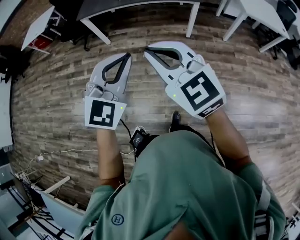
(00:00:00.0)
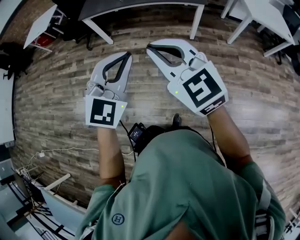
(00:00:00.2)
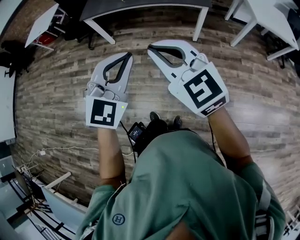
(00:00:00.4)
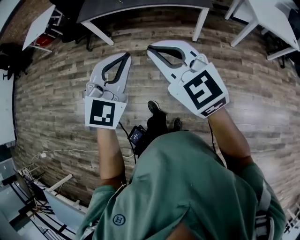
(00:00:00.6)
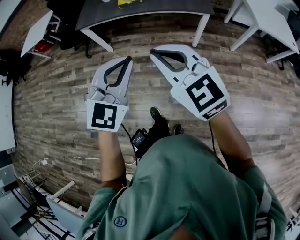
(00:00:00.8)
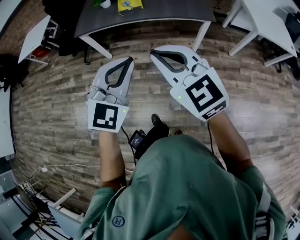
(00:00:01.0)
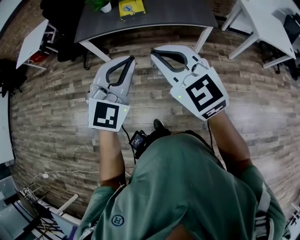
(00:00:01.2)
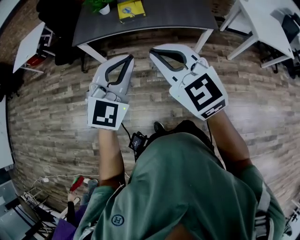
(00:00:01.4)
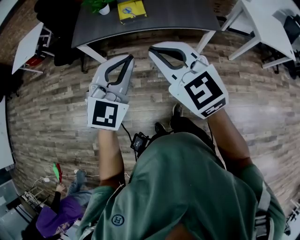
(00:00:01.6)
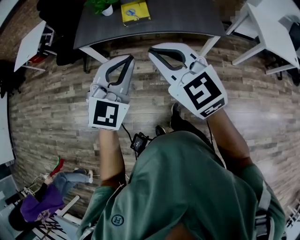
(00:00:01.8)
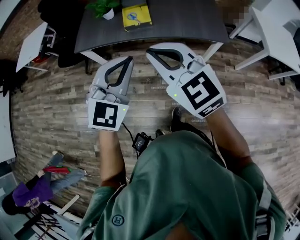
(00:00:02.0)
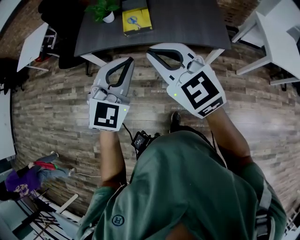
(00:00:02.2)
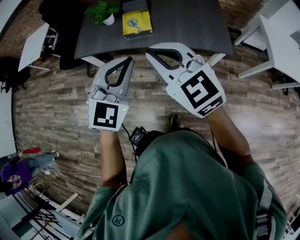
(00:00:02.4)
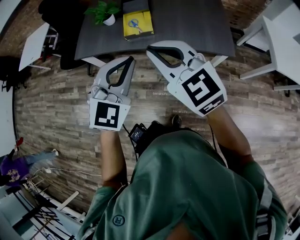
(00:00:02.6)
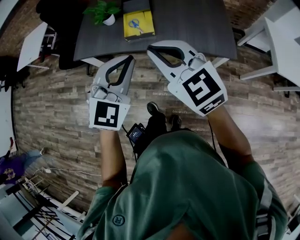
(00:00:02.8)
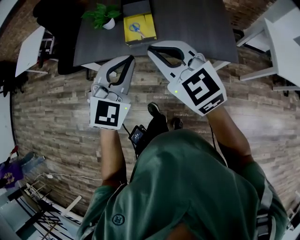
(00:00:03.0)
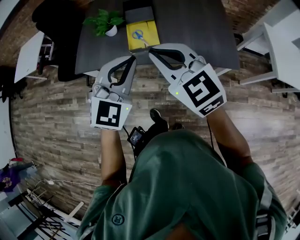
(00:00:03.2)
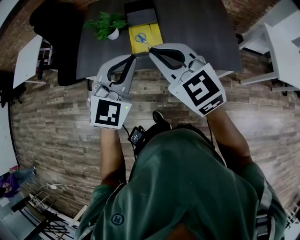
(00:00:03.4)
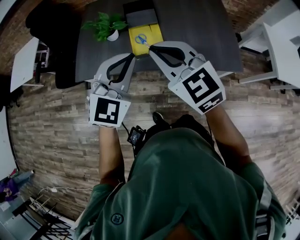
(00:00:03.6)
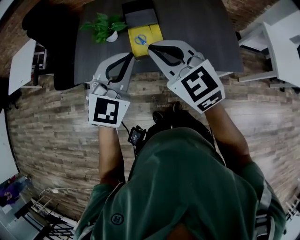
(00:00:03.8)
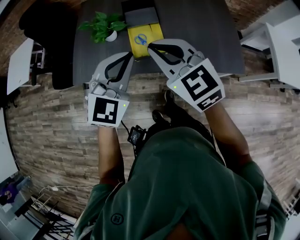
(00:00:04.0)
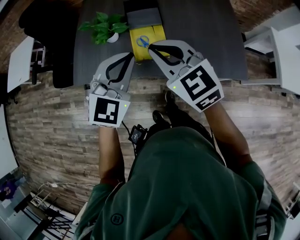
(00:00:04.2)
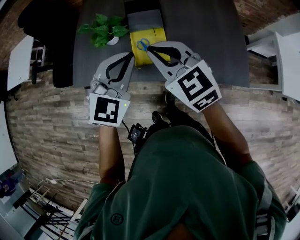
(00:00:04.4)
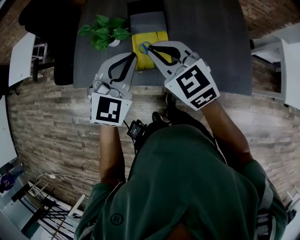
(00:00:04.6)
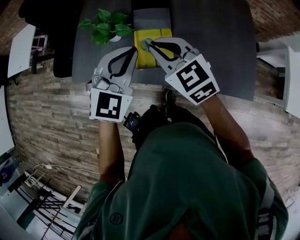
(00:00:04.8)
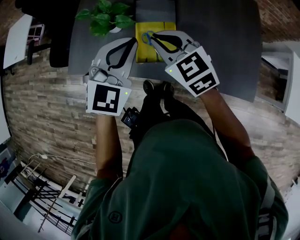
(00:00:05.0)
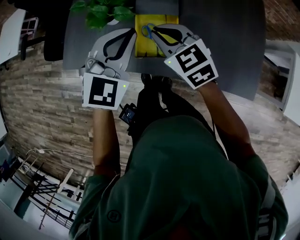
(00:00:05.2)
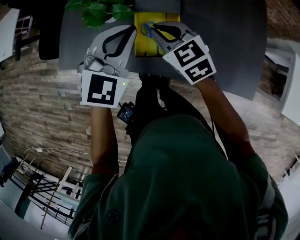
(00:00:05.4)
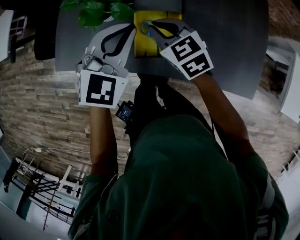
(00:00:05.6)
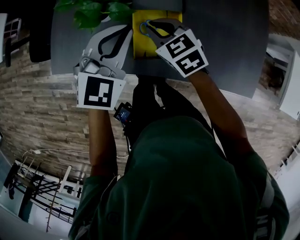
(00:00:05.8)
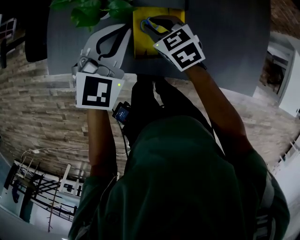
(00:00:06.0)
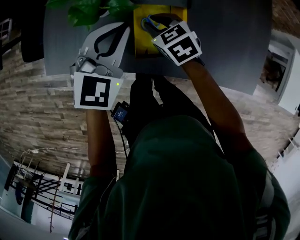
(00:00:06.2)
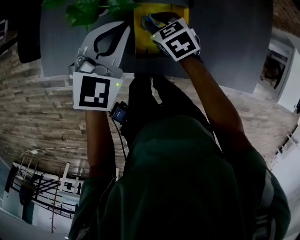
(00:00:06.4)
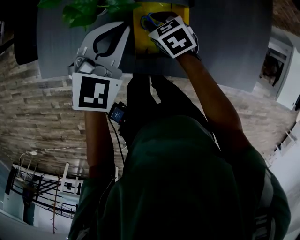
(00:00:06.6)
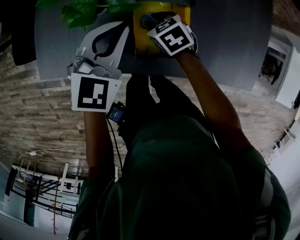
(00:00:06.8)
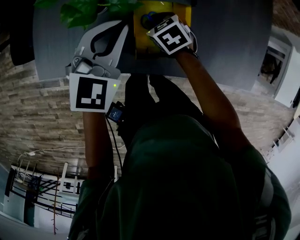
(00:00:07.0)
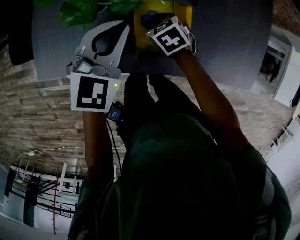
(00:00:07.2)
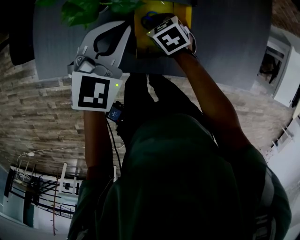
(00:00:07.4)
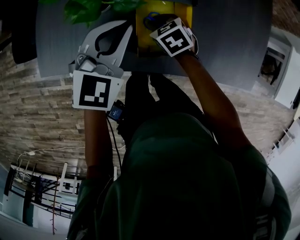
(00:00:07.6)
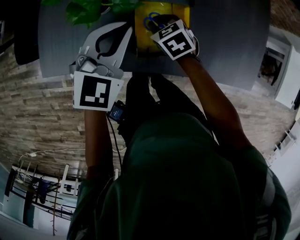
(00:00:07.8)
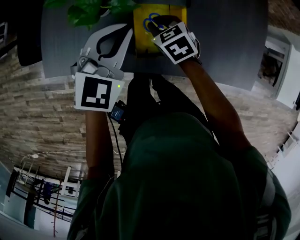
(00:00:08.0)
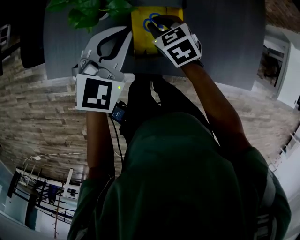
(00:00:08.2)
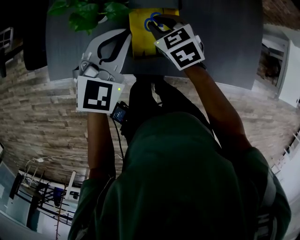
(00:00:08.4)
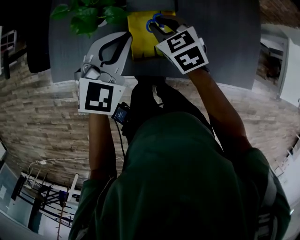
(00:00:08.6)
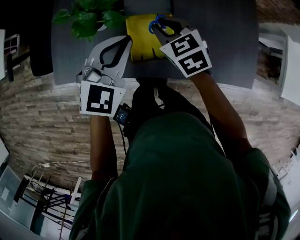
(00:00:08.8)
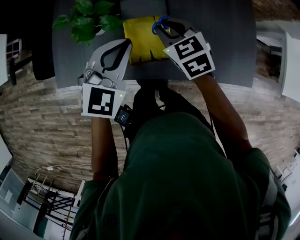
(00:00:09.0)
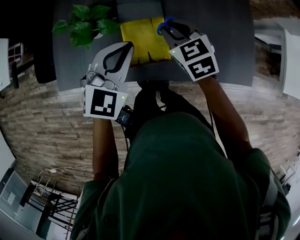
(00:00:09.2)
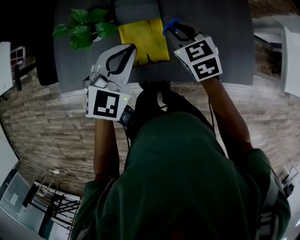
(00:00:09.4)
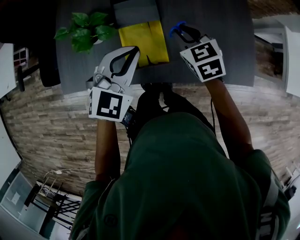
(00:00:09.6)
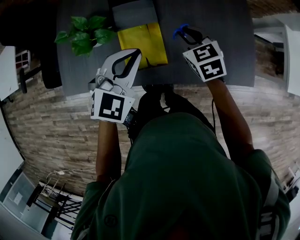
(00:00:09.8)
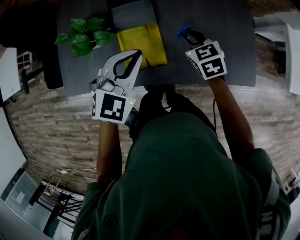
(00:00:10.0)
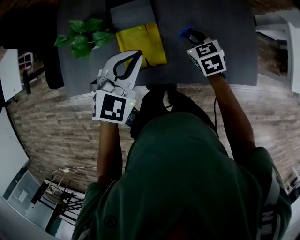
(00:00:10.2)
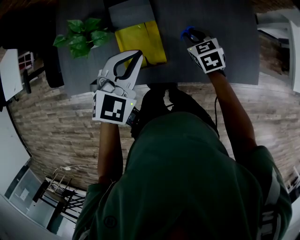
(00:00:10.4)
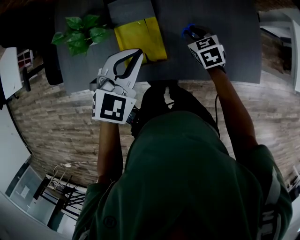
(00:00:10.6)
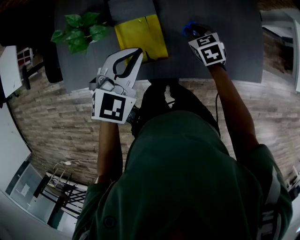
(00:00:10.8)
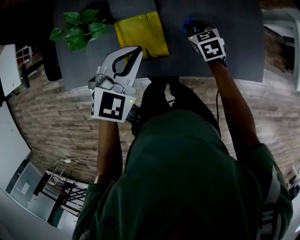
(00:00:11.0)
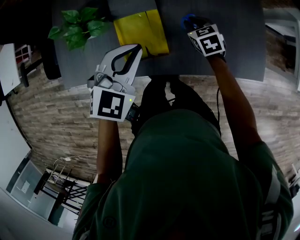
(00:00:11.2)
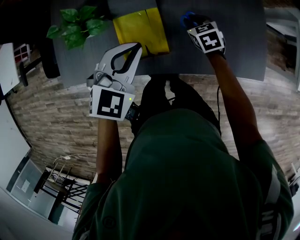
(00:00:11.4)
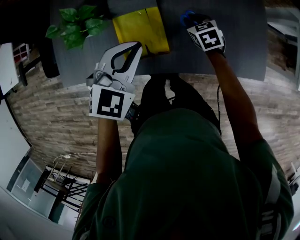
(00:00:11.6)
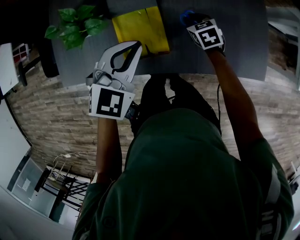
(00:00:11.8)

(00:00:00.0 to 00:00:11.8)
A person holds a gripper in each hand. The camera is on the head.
00:00:00.0 - 00:00:01.4: The two grippers go roughly 35 cm forward.
00:00:01.4 - 00:00:03.0: Both grippers travel together forward, roughly 30 cm.
00:00:03.0 - 00:00:04.4: The grippers both shift forward by about 20 cm.
00:00:04.4 - 00:00:06.0: The left gripper moves forward and downward, about 20 cm; the right gripper travels downward and forward by some 30 cm, and swivels about 30 degrees.
00:00:06.0 - 00:00:07.4: The left gripper changes place by approximately 5 cm. Meanwhile the right gripper heads downward, covering about 10 cm.
00:00:07.4 - 00:00:08.8: The right gripper goes some 20 cm upward, and changes its angle by about 20 degrees. The left gripper shifts approximately 10 cm upward and to the right.
00:00:08.8 - 00:00:10.4: The left gripper moves to the right, roughly 10 cm, while the right gripper goes about 20 cm to the right.
00:00:10.4 - 00:00:11.8: The right gripper is displaced downward by approximately 10 cm.

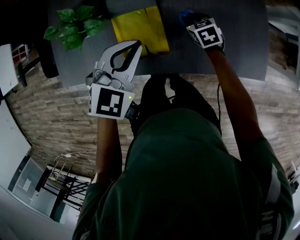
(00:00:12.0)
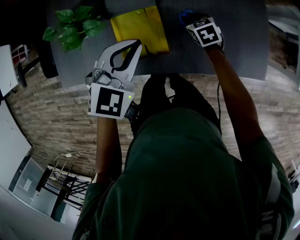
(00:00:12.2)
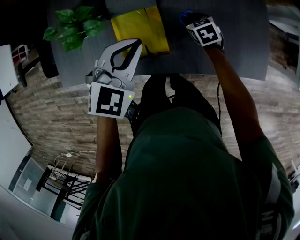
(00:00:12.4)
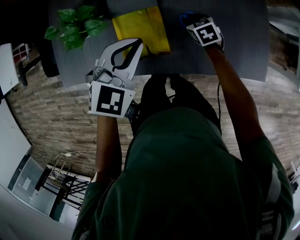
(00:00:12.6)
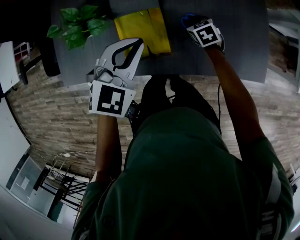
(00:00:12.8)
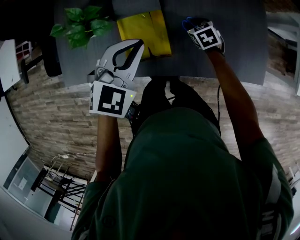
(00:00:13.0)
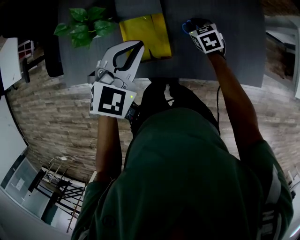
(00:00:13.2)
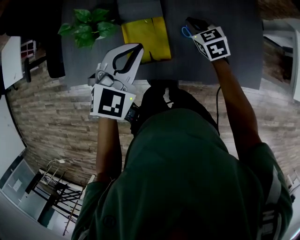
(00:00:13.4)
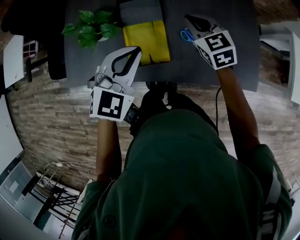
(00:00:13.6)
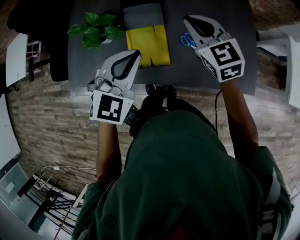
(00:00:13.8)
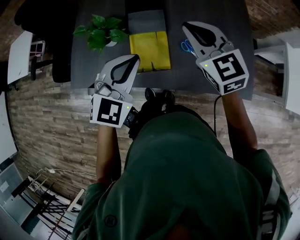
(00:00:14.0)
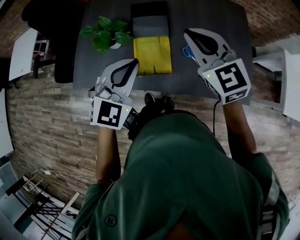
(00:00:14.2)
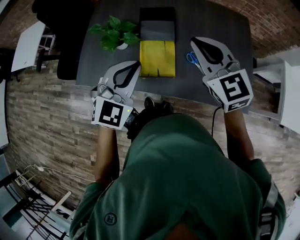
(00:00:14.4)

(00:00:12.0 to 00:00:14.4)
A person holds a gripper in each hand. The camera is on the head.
00:00:12.0 - 00:00:13.2: The grippers make only small movements.
00:00:13.2 - 00:00:14.4: The left gripper moves backward and upward, approximately 10 cm; the right gripper is displaced upward by some 35 cm, and tilts its fingers roughly 40 degrees upward.

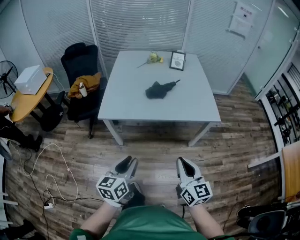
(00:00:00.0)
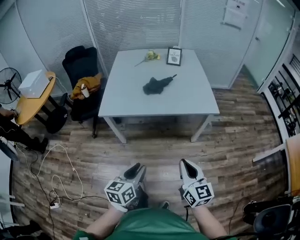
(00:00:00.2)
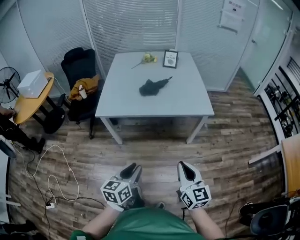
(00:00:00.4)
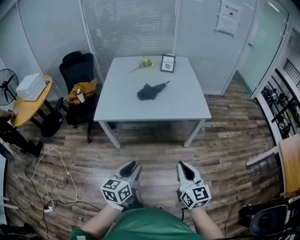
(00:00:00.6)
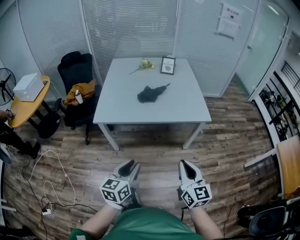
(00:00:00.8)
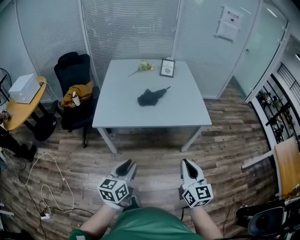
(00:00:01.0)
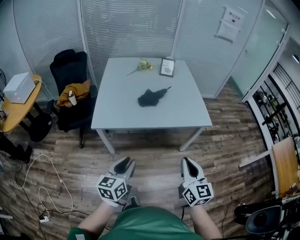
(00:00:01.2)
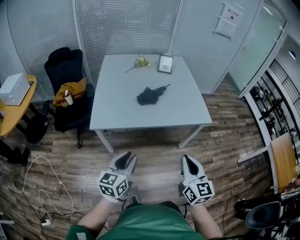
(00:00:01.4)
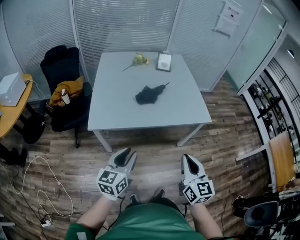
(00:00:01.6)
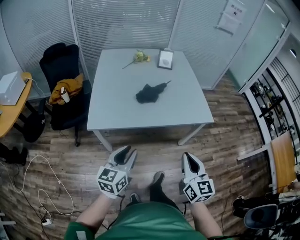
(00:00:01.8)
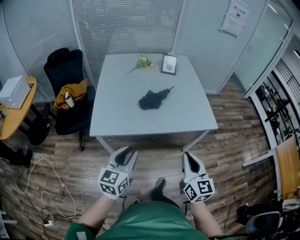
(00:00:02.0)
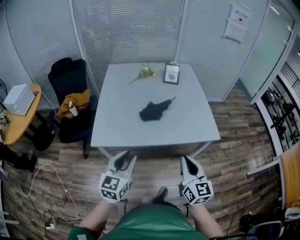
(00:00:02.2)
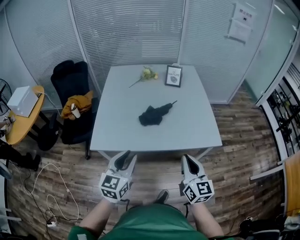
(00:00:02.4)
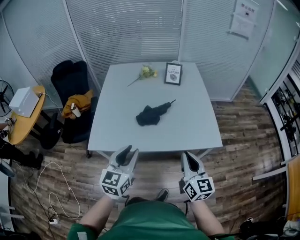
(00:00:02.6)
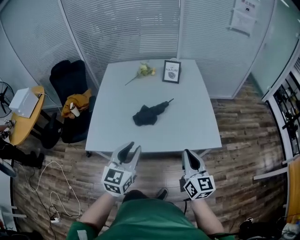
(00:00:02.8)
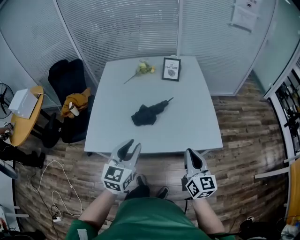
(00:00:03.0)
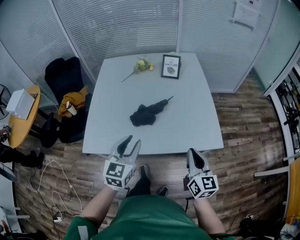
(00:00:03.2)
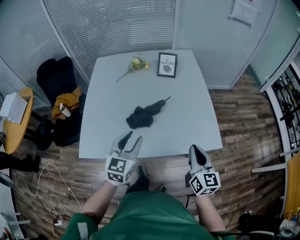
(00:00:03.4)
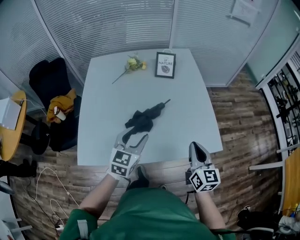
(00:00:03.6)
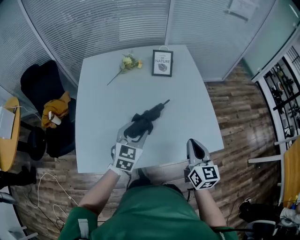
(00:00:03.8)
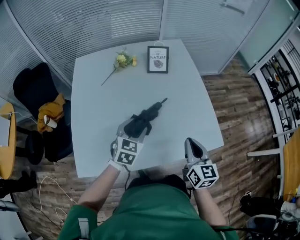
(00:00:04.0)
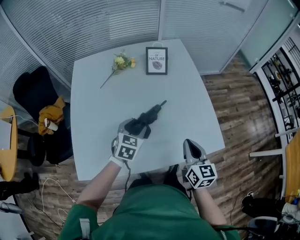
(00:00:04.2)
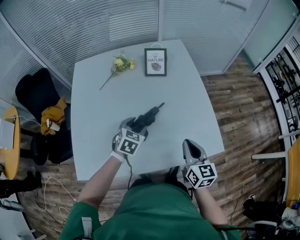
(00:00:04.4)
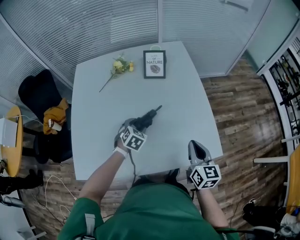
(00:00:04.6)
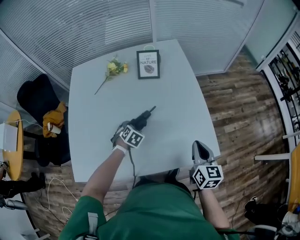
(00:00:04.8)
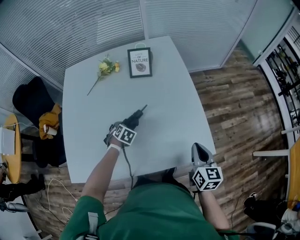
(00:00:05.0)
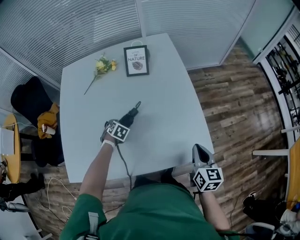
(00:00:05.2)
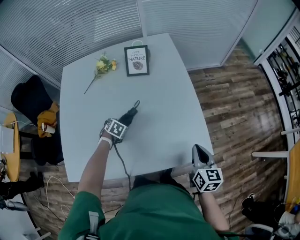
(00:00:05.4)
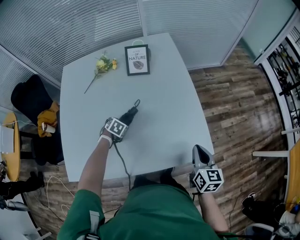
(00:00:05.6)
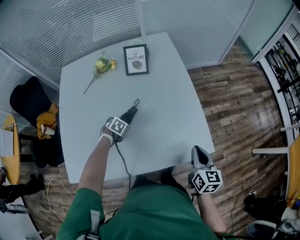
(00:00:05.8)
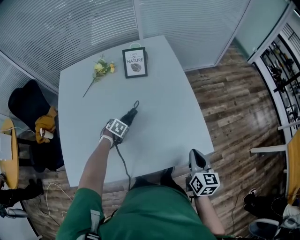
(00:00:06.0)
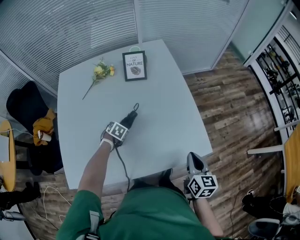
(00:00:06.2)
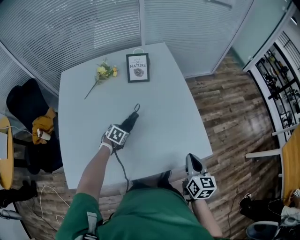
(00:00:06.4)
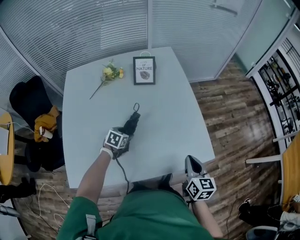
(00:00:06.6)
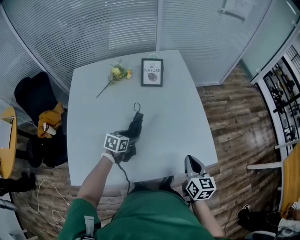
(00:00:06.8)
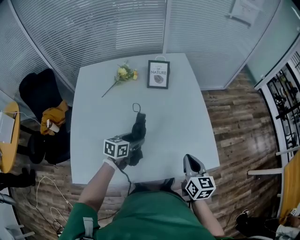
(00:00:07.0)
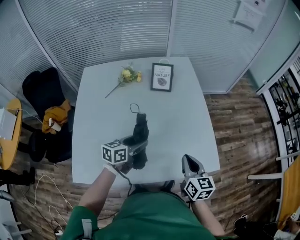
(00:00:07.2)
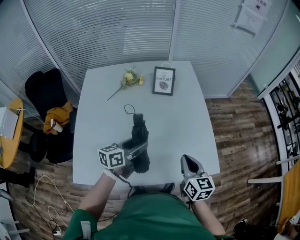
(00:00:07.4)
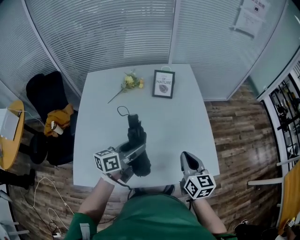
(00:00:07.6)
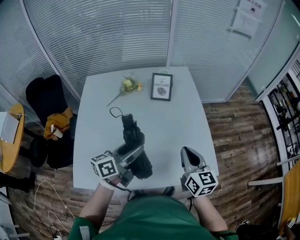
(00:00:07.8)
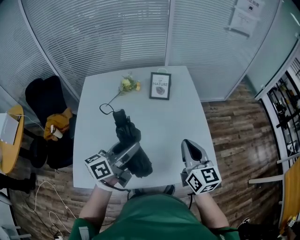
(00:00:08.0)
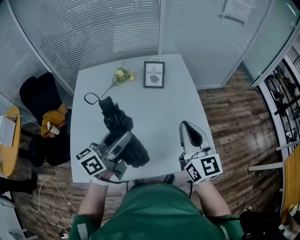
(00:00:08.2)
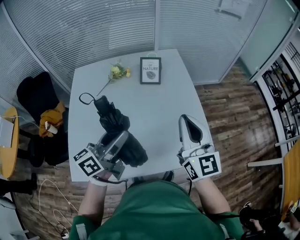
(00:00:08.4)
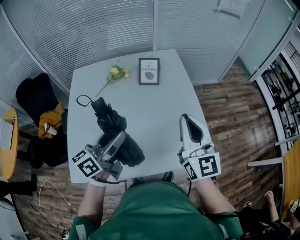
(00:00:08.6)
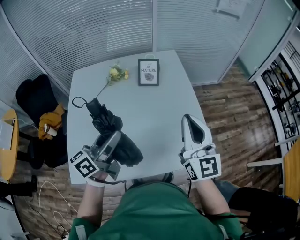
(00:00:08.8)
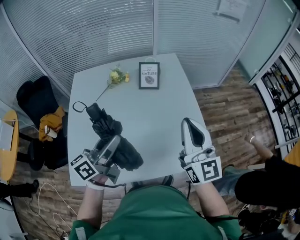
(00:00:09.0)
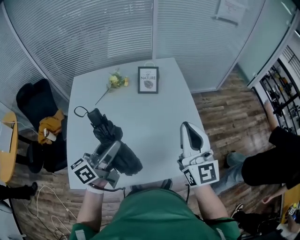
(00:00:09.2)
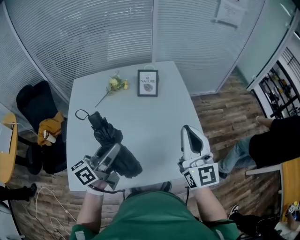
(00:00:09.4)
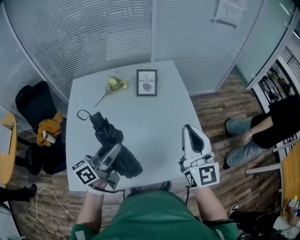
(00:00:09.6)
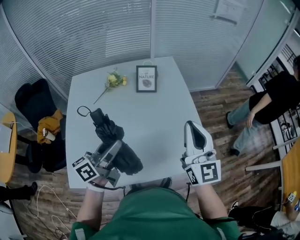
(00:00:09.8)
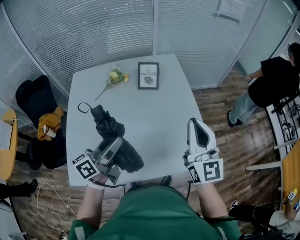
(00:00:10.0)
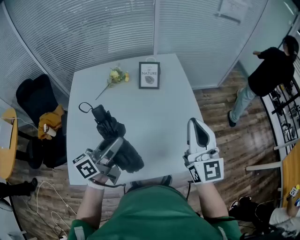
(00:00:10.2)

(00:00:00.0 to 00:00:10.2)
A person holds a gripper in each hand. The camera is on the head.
00:00:00.0 - 00:00:01.4: The left gripper shifts approximately 10 cm forward.
00:00:01.4 - 00:00:03.0: The grippers both shift forward and to the right by about 30 cm. The left gripper changes its angle by roughly 20 degrees.
00:00:03.0 - 00:00:04.4: The right gripper shifts some 20 cm forward; the left gripper goes some 35 cm forward and downward, points its fingers roughly 30 degrees further downward, and opens up.
00:00:04.4 - 00:00:05.8: The right gripper shifts by roughly 15 cm. Meanwhile the left gripper is displaced downward by approximately 15 cm, and tips its fingers downward by about 30 degrees.
00:00:05.8 - 00:00:07.2: The left gripper shifts approximately 20 cm upward, and tilts its fingers approximately 50 degrees upward, while the right gripper shifts by some 15 cm.
00:00:07.2 - 00:00:08.8: Both grippers move upward, roughly 20 cm. The right gripper points its fingers approximately 30 degrees further upward. Meanwhile the left gripper changes its angle by approximately 30 degrees.
00:00:08.8 - 00:00:10.2: The grippers stay close to where they were, moving slightly.
